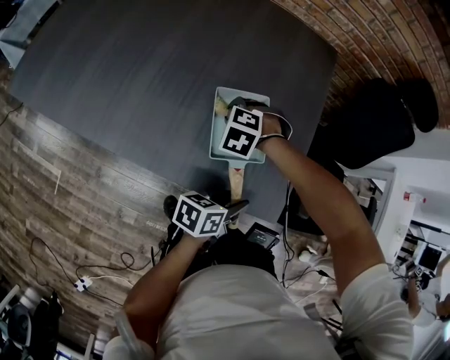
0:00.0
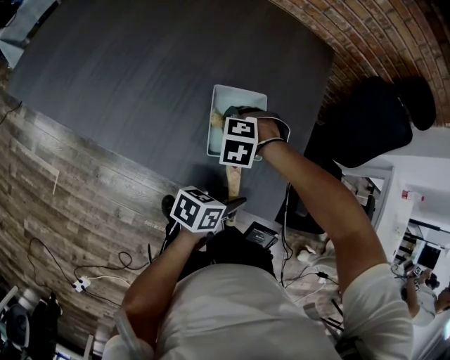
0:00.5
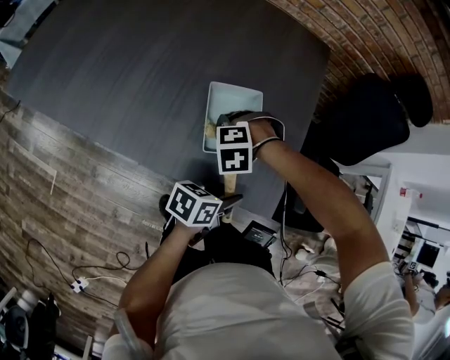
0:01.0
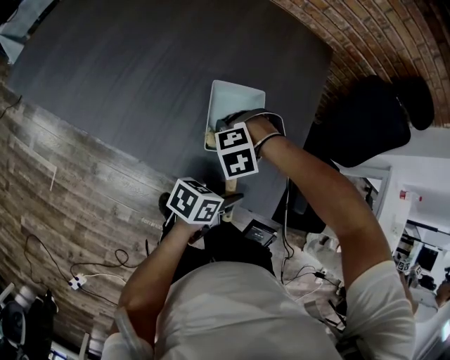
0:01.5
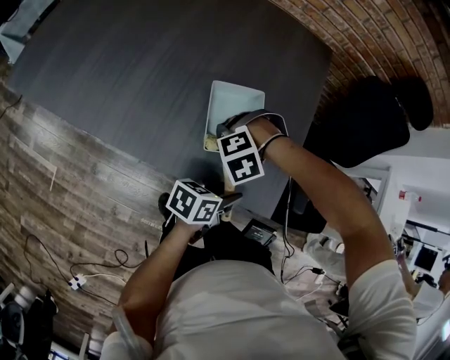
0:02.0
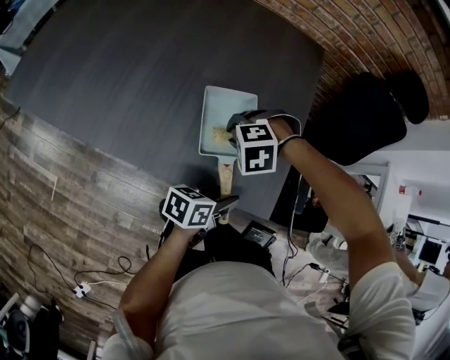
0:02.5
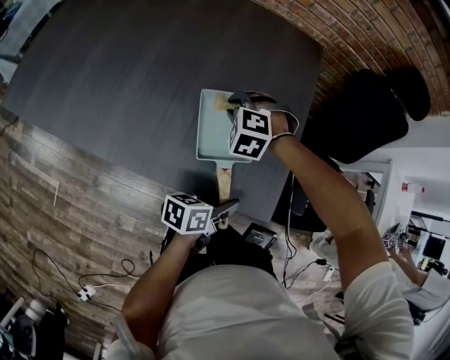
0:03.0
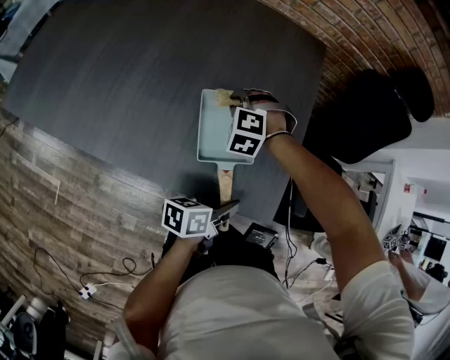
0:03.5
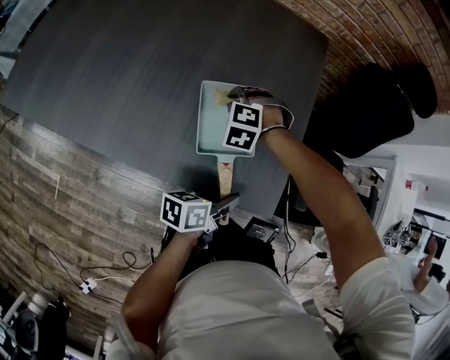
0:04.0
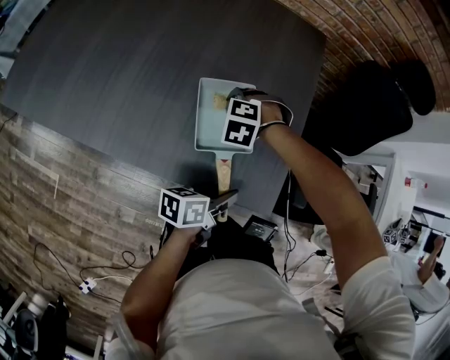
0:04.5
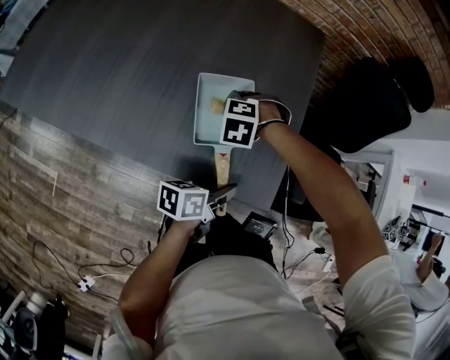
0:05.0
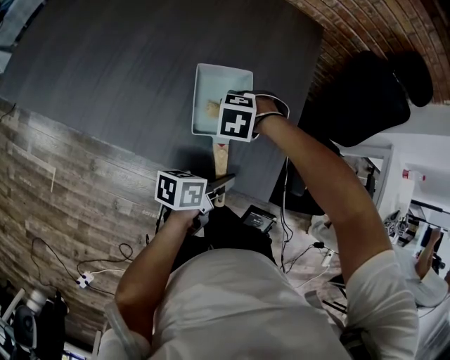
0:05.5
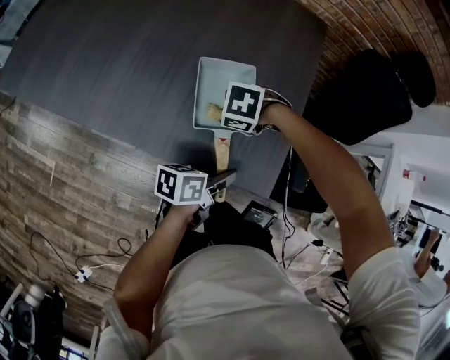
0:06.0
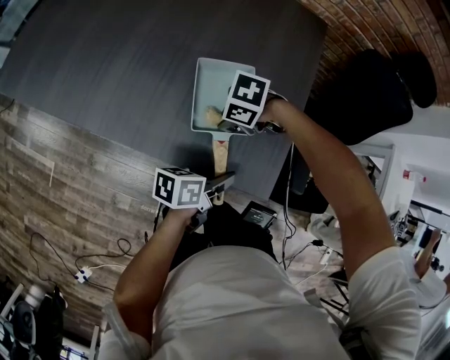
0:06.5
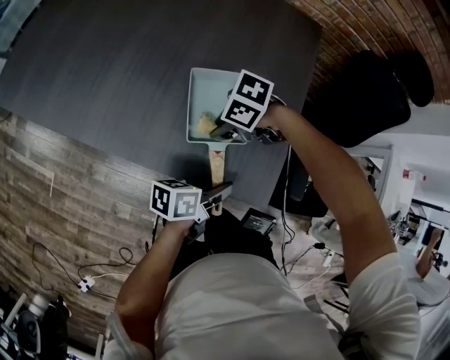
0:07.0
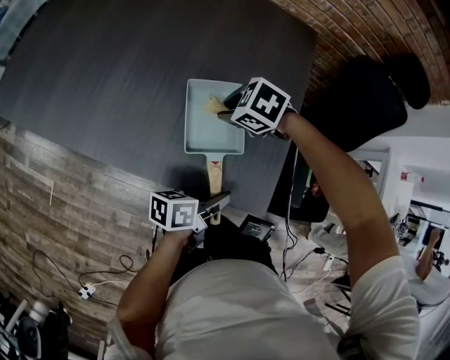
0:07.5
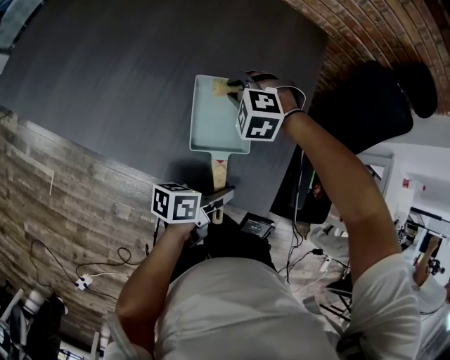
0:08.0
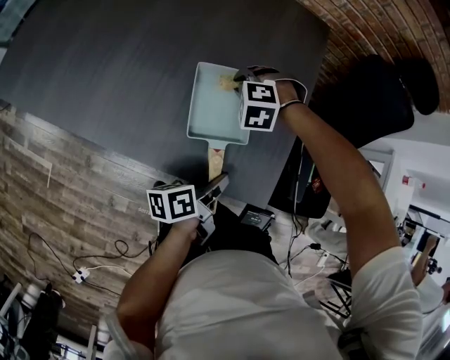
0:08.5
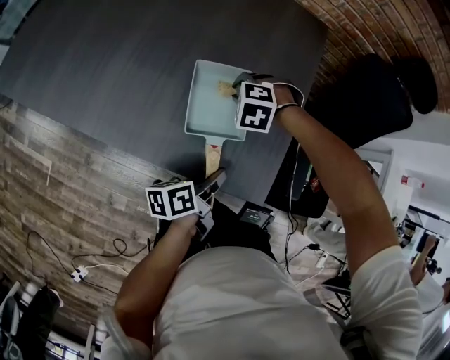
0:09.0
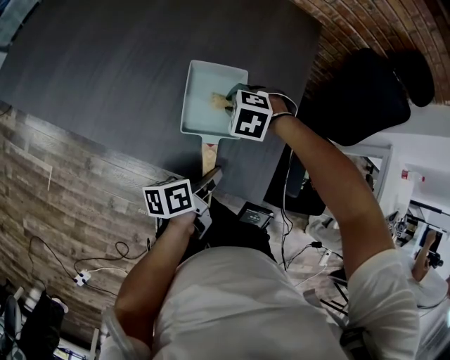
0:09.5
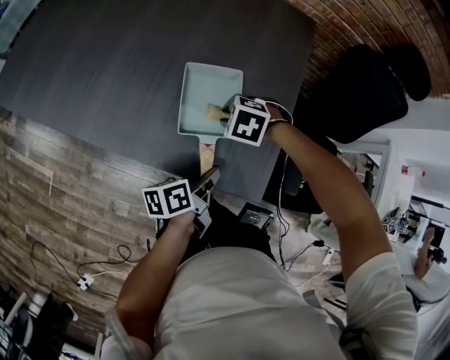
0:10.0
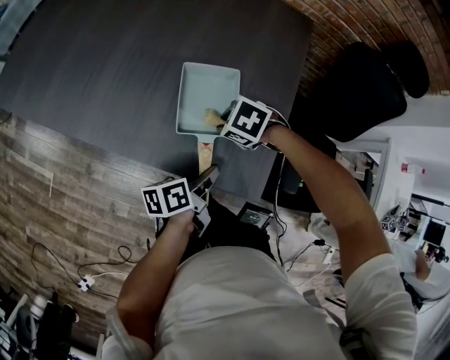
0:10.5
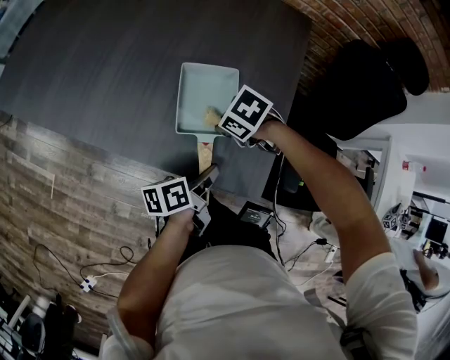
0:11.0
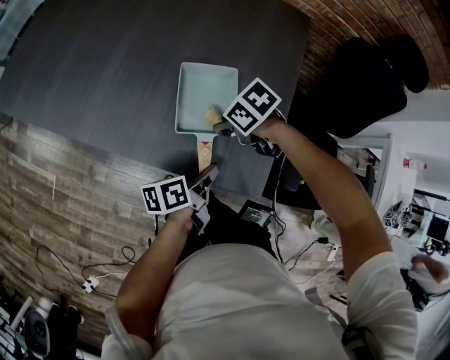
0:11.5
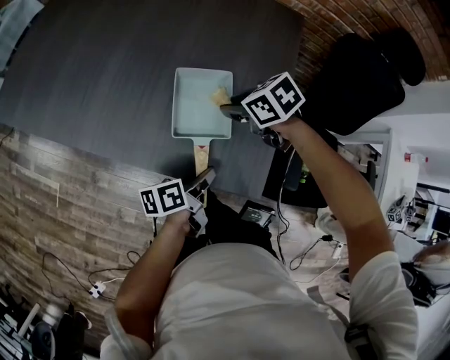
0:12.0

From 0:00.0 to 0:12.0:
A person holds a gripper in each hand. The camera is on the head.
From 0:00.0 to 0:02.0: The right gripper changes place by about 10 cm, and changes its angle by approximately 40 degrees.
From 0:02.0 to 0:04.0: The right gripper shifts by about 15 cm, and turns by approximately 40 degrees.
From 0:04.0 to 0:06.0: The right gripper moves approximately 10 cm, and turns by approximately 40 degrees.
From 0:06.0 to 0:08.0: The right gripper ends up approximately 15 cm from where it was, and changes its angle by about 40 degrees.
From 0:08.0 to 0:10.0: The right gripper ends up about 10 cm from where it was, and rotates about 30 degrees.
From 0:10.0 to 0:12.0: The right gripper shifts some 5 cm upward, and rolls clockwise, seen from behind, by roughly 40 degrees.

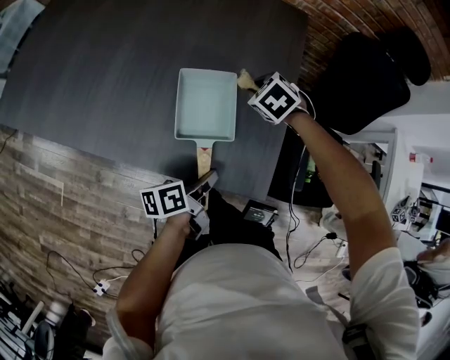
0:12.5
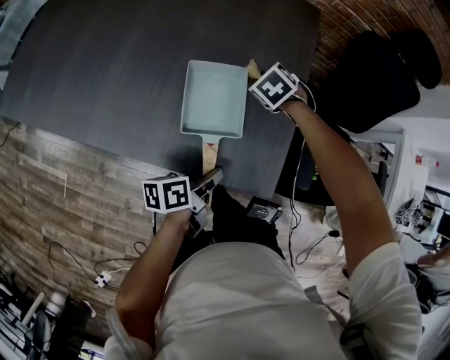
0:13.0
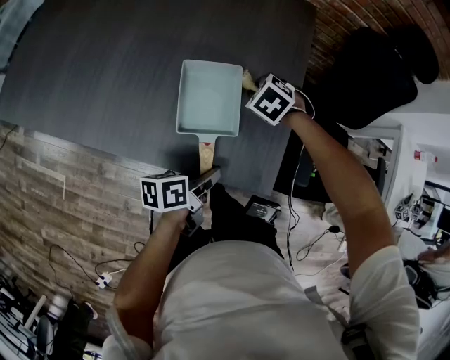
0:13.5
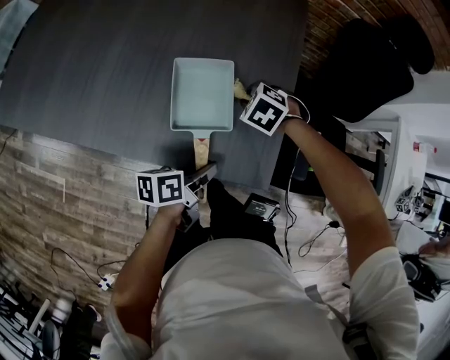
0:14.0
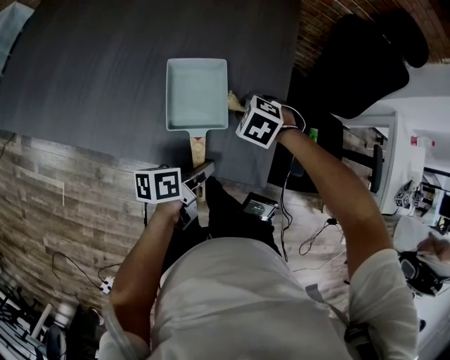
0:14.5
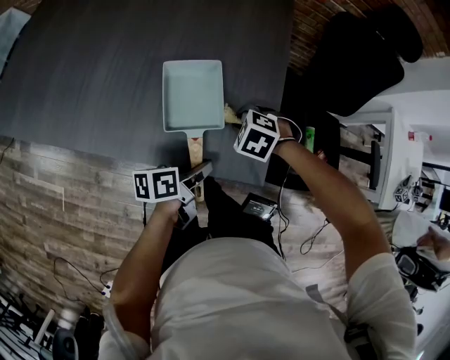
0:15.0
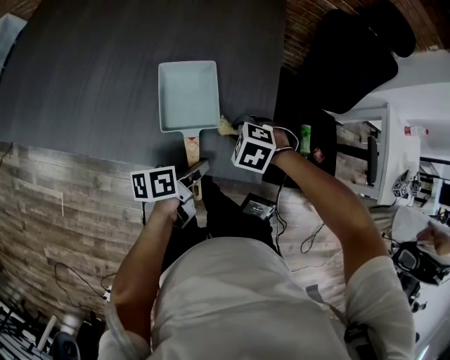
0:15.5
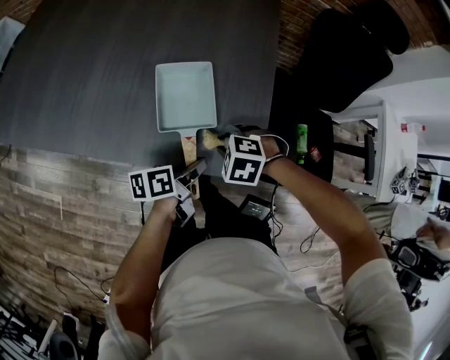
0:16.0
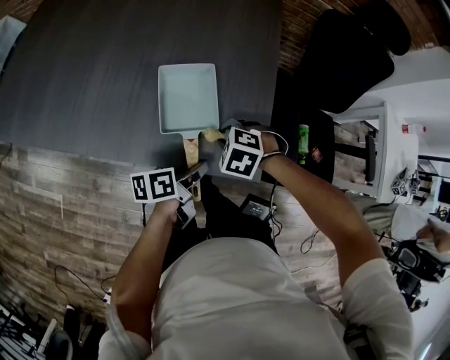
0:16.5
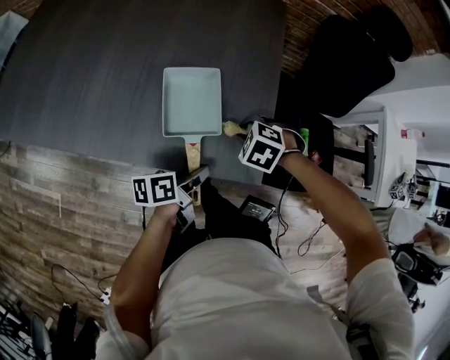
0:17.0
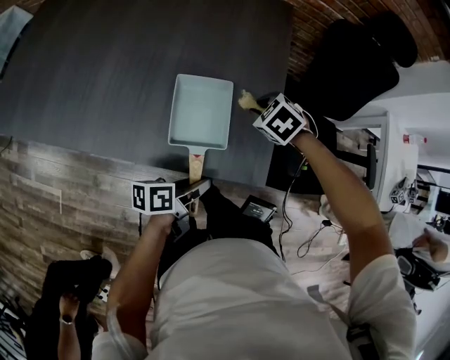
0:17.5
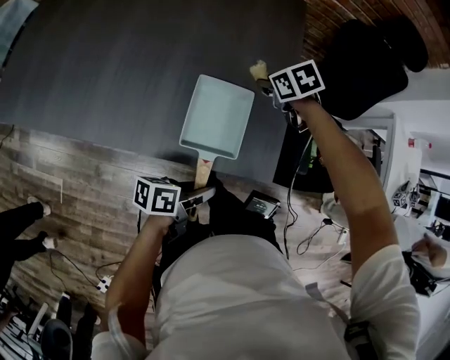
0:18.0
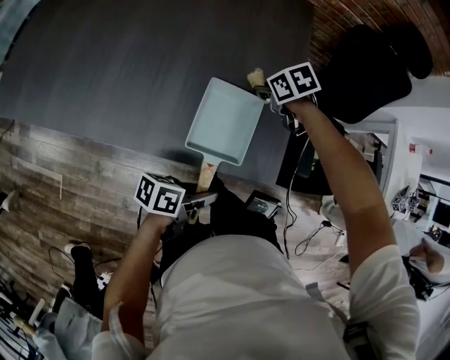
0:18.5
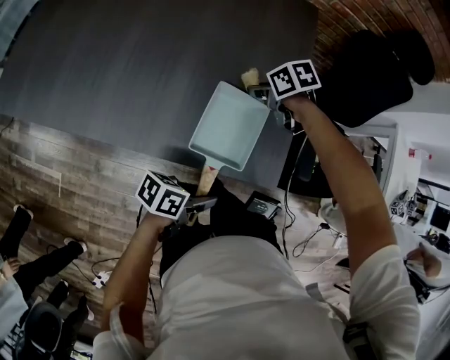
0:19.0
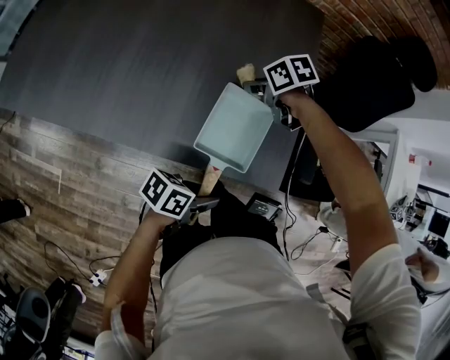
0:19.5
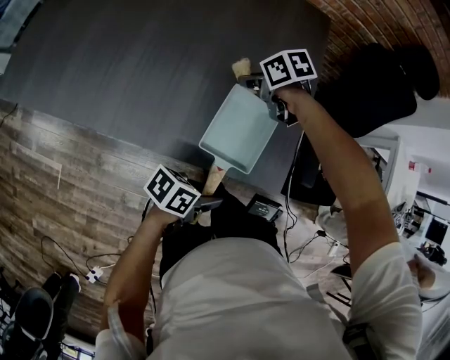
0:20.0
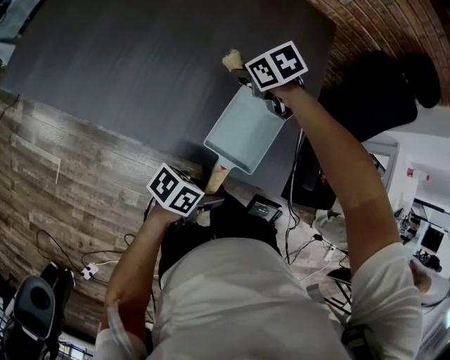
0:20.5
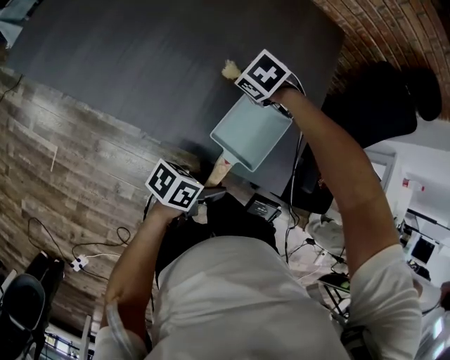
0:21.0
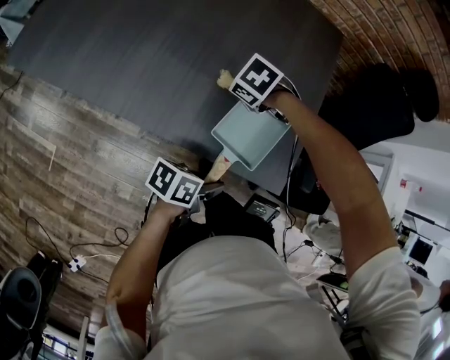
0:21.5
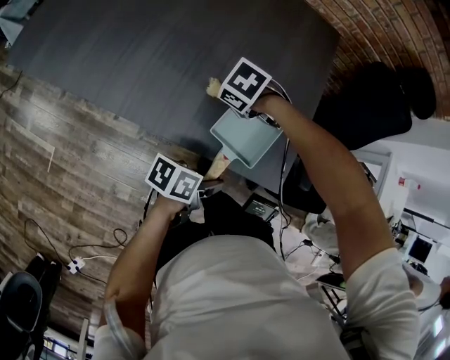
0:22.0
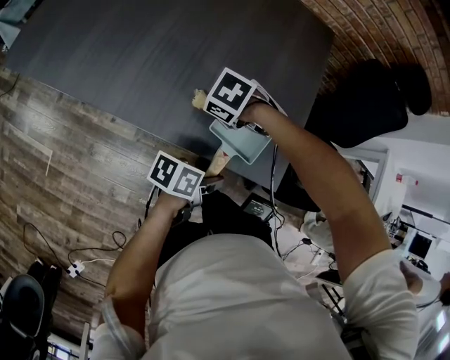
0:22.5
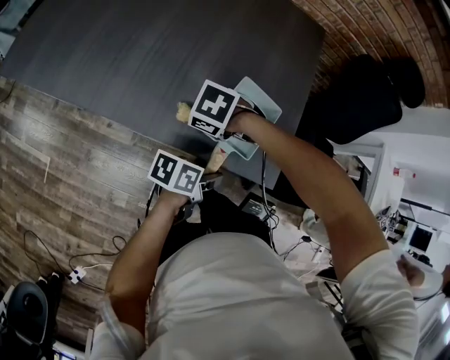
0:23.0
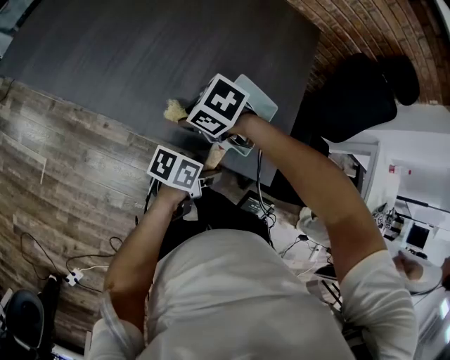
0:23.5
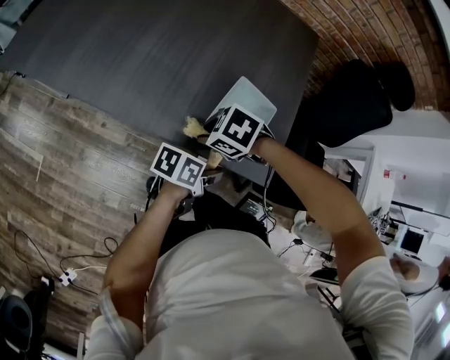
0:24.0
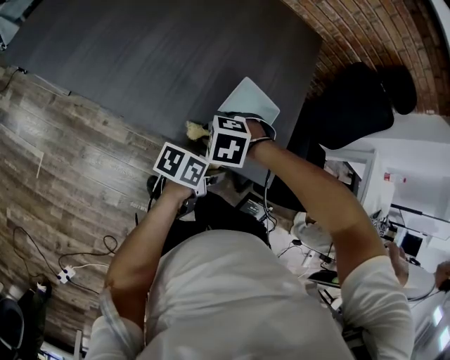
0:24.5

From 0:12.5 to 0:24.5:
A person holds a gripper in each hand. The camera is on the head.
From 0:12.5 to 0:14.5: The right gripper changes place by about 10 cm.
From 0:14.5 to 0:16.5: The right gripper changes place by roughly 10 cm.
From 0:16.5 to 0:18.5: The right gripper changes place by some 15 cm, and rolls clockwise, seen from behind, by roughly 50 degrees. The left gripper shifts by approximately 10 cm, and turns by approximately 20 degrees.
From 0:18.5 to 0:20.5: The right gripper shifts by roughly 15 cm.
From 0:20.5 to 0:22.5: The right gripper moves some 15 cm, and turns by approximately 30 degrees.
From 0:22.5 to 0:24.5: The right gripper shifts by some 10 cm, and swivels about 30 degrees.

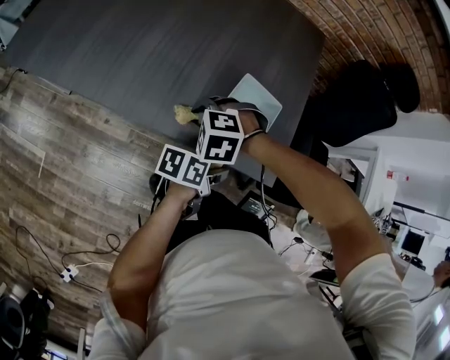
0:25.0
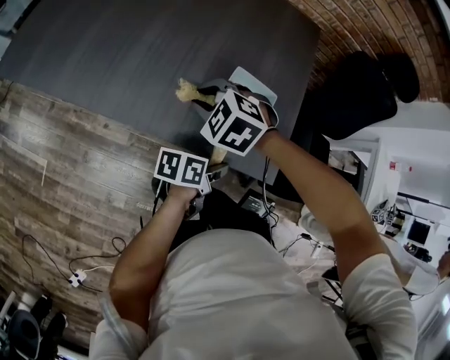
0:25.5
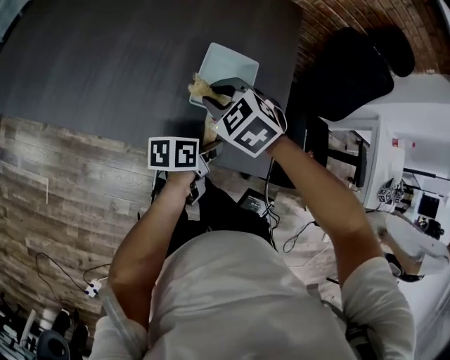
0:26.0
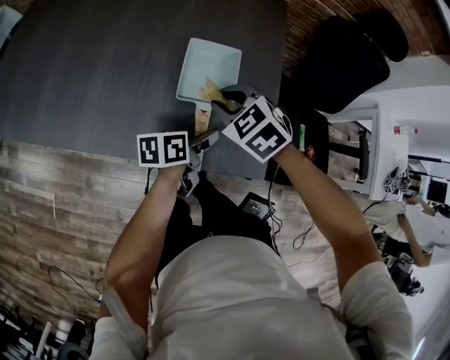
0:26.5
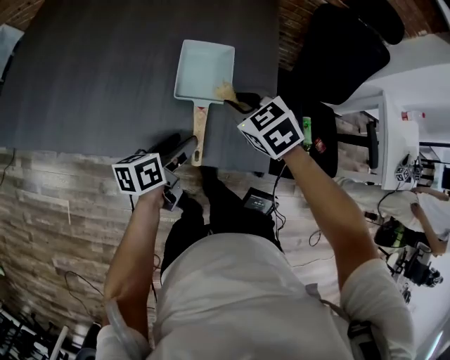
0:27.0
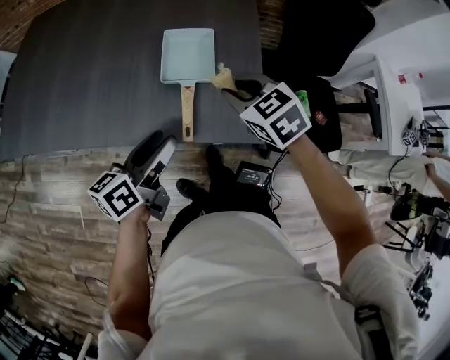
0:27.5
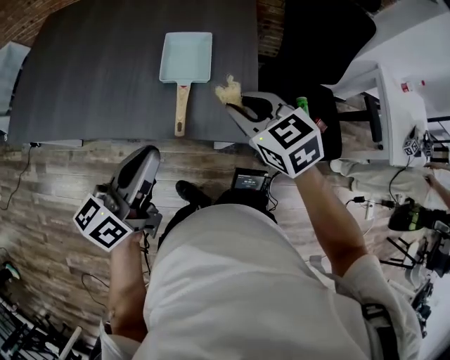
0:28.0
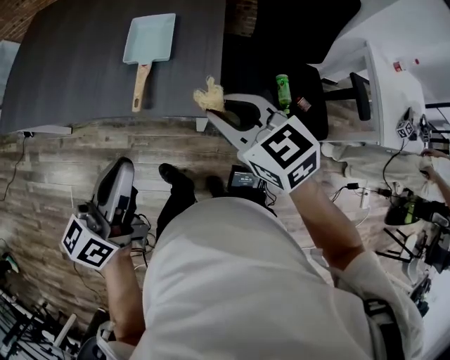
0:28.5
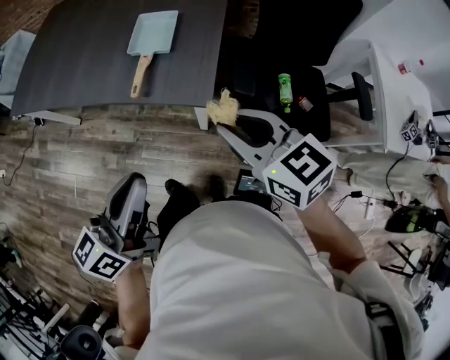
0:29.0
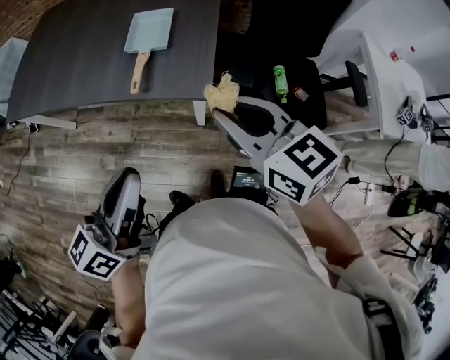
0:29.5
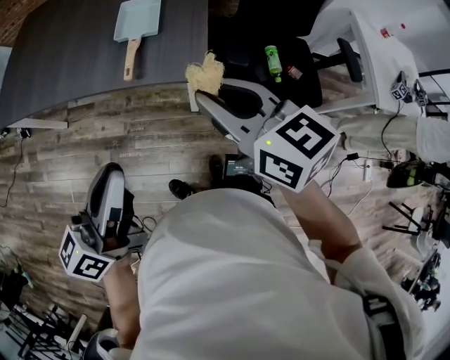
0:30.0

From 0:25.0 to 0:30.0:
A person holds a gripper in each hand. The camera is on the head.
From 0:25.0 to 0:27.5: The left gripper heads upward, covering some 15 cm, turns by some 30 degrees, and opens its fingers; the right gripper moves approximately 25 cm, and rotates around the line of its fingers by approximately 60 degrees, clockwise from behind.
From 0:27.5 to 0:30.0: Both grippers move backward and upward, about 30 cm. The right gripper rotates some 40 degrees. The left gripper closes.
